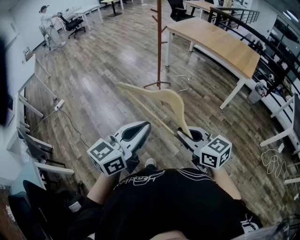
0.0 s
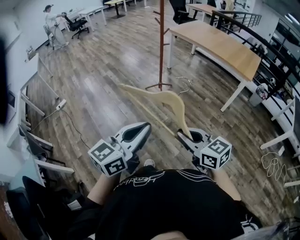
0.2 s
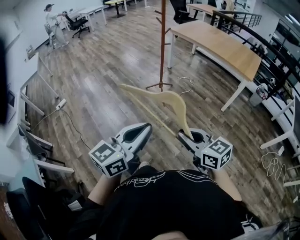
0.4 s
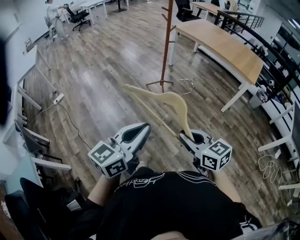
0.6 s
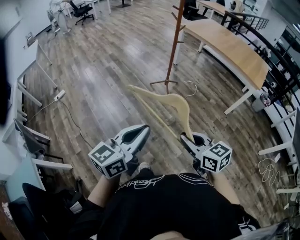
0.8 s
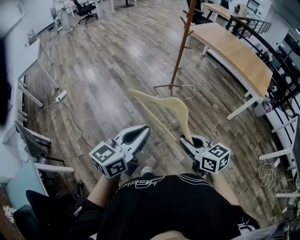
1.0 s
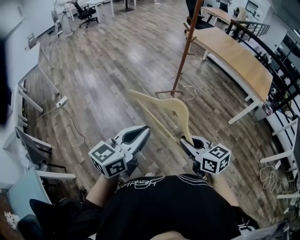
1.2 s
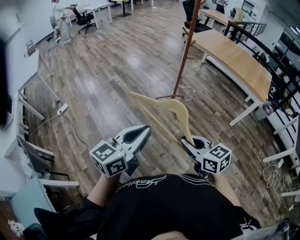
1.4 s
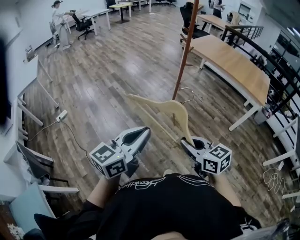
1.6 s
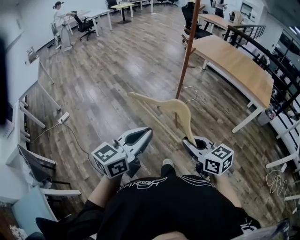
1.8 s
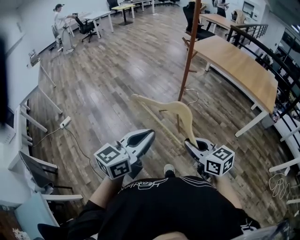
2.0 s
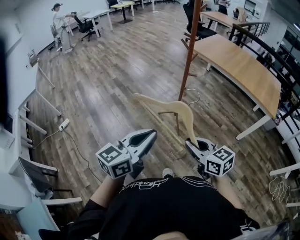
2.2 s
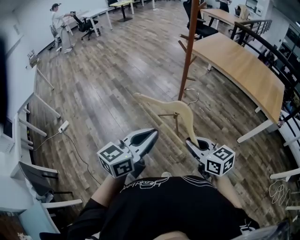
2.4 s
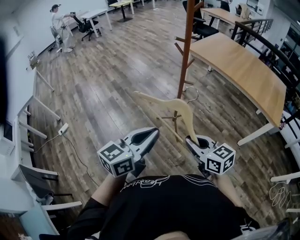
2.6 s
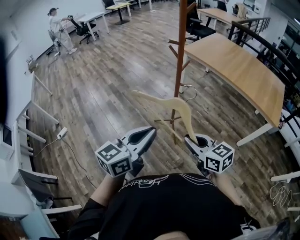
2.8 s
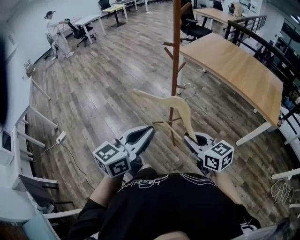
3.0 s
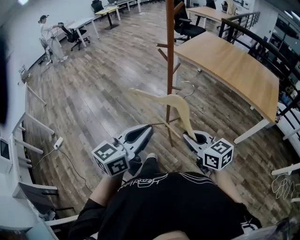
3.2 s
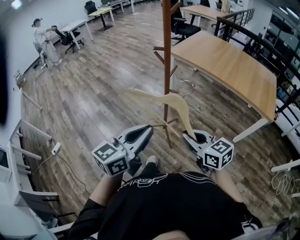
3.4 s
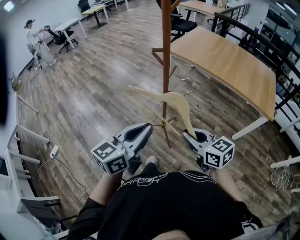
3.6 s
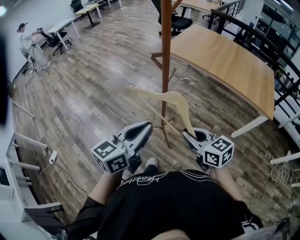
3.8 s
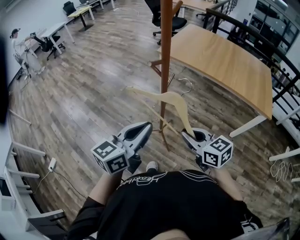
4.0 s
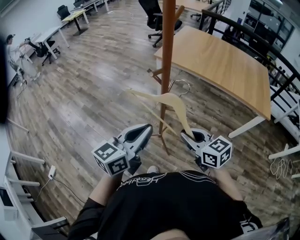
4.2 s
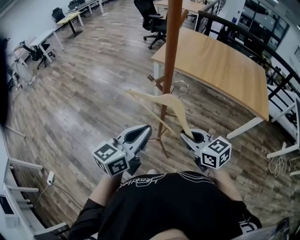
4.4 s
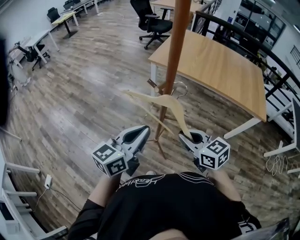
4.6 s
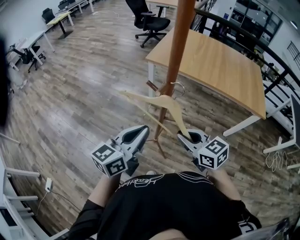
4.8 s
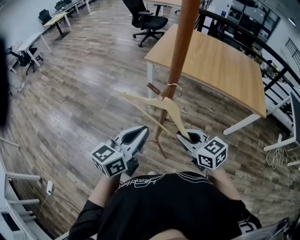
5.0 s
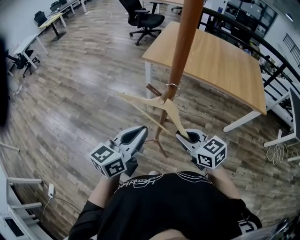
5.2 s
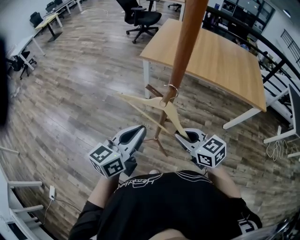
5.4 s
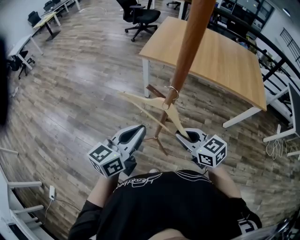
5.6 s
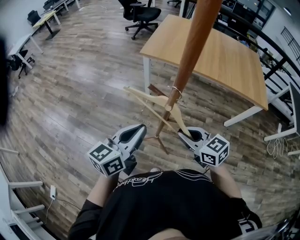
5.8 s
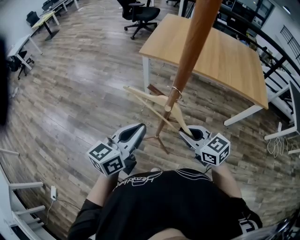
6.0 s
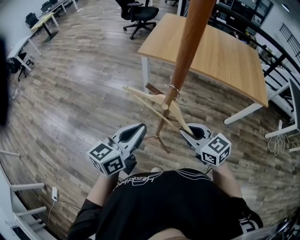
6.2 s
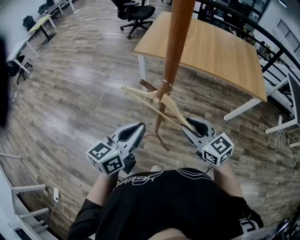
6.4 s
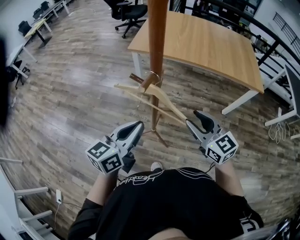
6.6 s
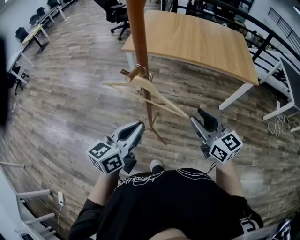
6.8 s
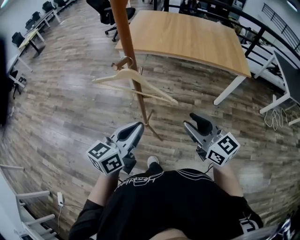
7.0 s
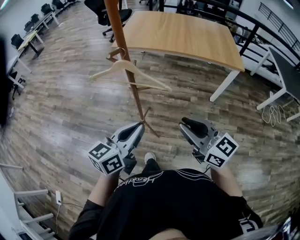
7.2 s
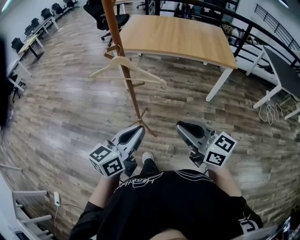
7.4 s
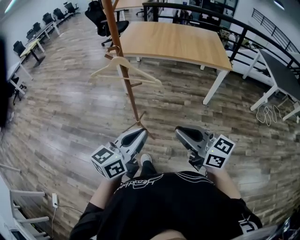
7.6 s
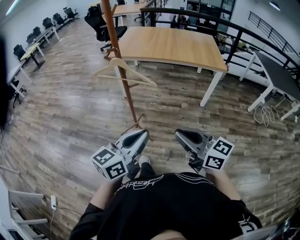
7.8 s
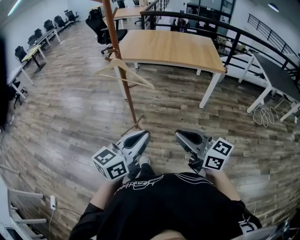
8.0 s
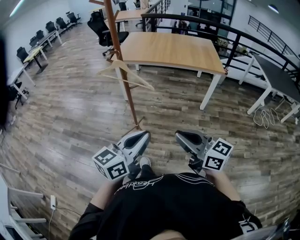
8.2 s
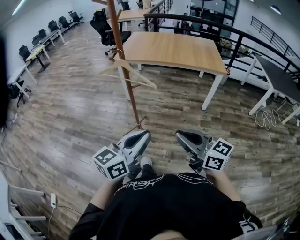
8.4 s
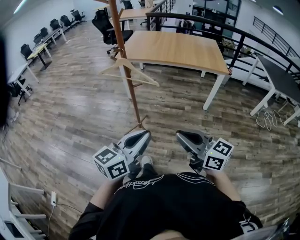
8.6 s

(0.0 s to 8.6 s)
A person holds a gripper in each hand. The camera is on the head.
0.0 s - 1.4 s: Both grippers travel together to the left and forward, roughly 20 cm.
1.4 s - 2.8 s: The grippers both shift forward and to the right by some 35 cm.
2.8 s - 4.4 s: Both grippers move forward, approximately 25 cm.
4.4 s - 5.8 s: The grippers both shift forward and downward by roughly 10 cm.
5.8 s - 7.2 s: The right gripper goes about 25 cm backward, to the right and upward, and changes its angle by approximately 20 degrees. The left gripper shifts about 20 cm backward and to the right.
7.2 s - 8.6 s: The grippers both shift backward by approximately 20 cm.

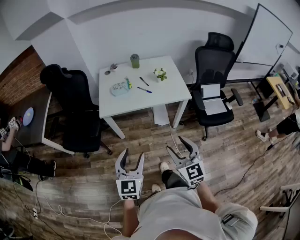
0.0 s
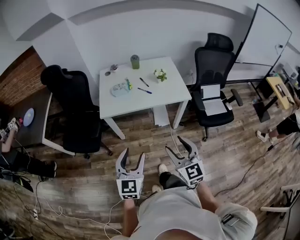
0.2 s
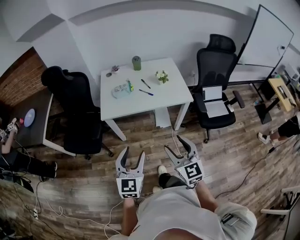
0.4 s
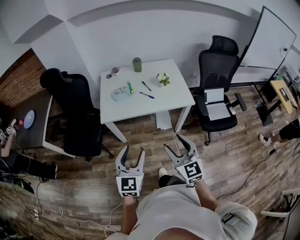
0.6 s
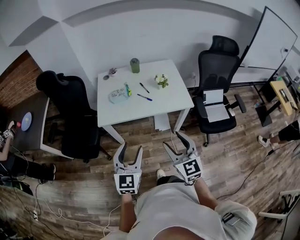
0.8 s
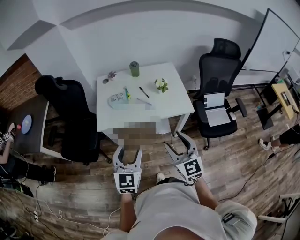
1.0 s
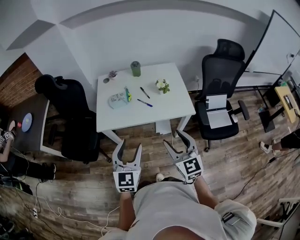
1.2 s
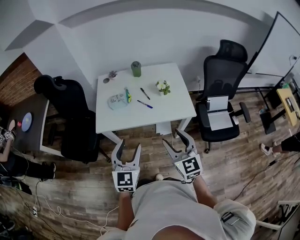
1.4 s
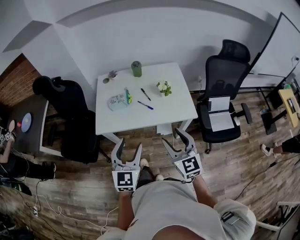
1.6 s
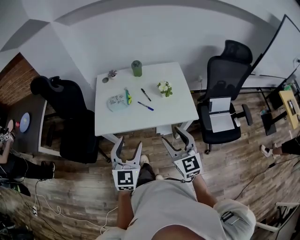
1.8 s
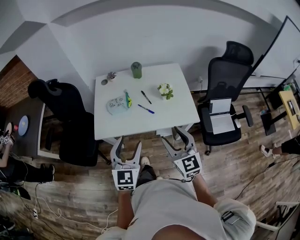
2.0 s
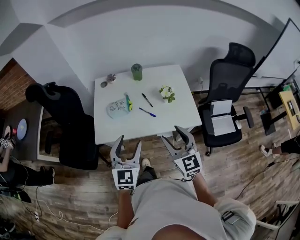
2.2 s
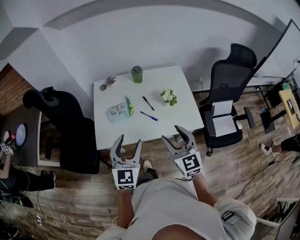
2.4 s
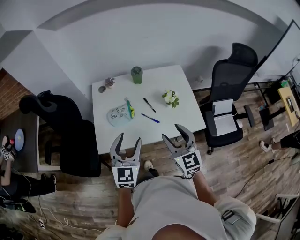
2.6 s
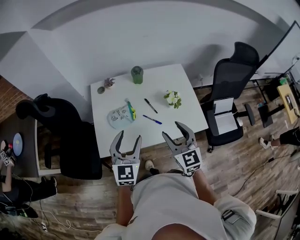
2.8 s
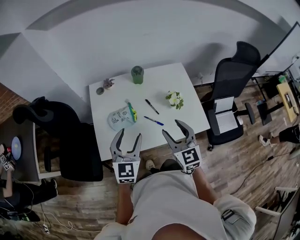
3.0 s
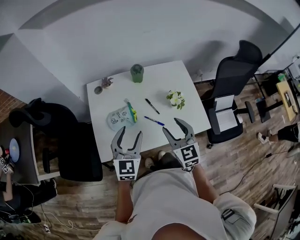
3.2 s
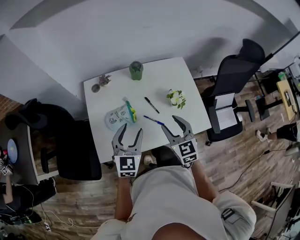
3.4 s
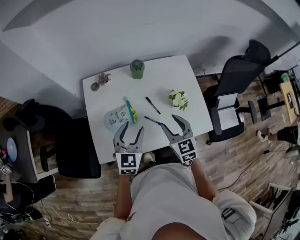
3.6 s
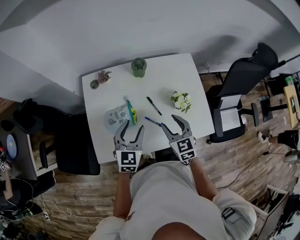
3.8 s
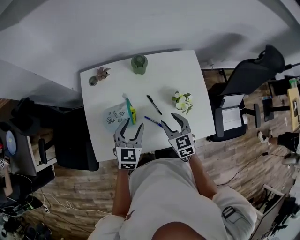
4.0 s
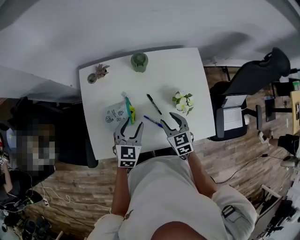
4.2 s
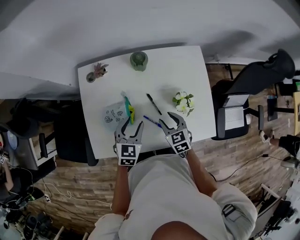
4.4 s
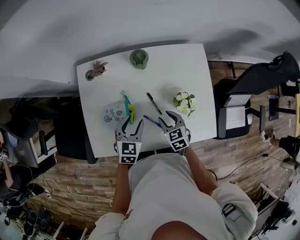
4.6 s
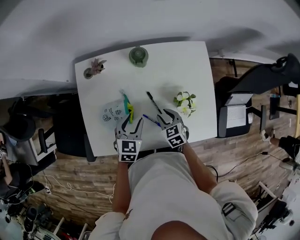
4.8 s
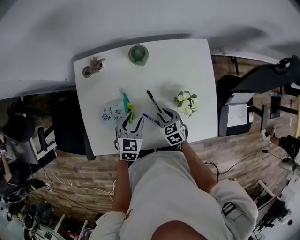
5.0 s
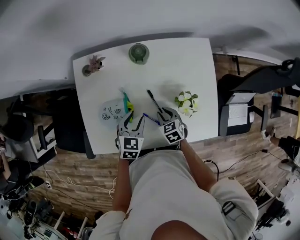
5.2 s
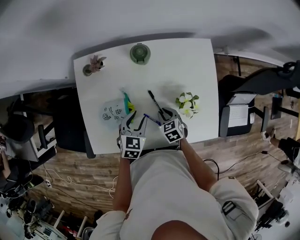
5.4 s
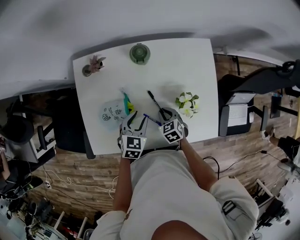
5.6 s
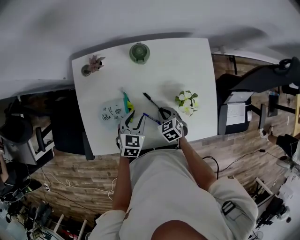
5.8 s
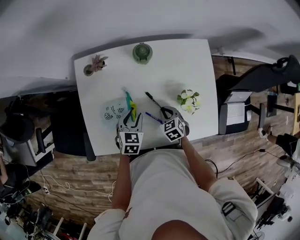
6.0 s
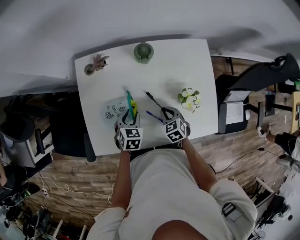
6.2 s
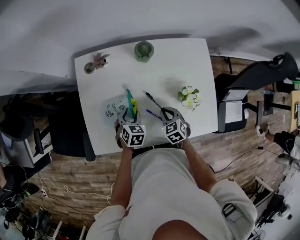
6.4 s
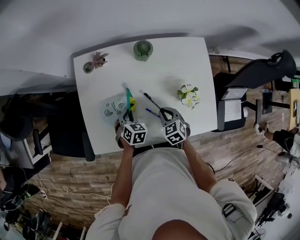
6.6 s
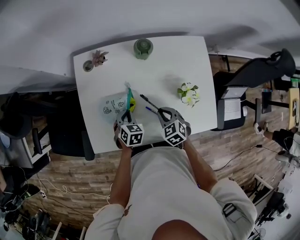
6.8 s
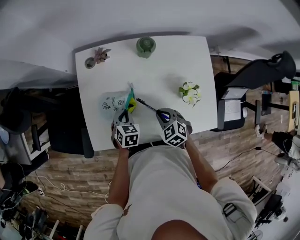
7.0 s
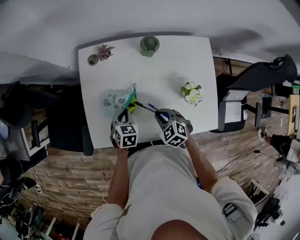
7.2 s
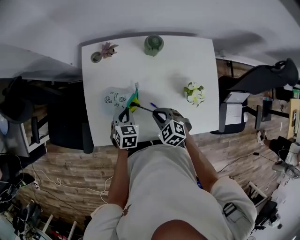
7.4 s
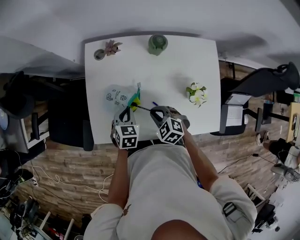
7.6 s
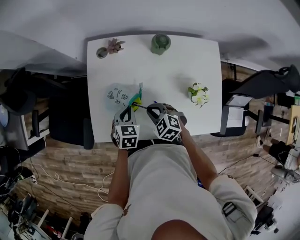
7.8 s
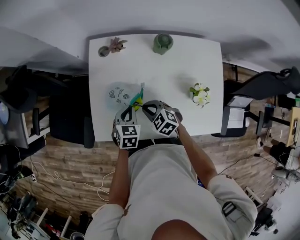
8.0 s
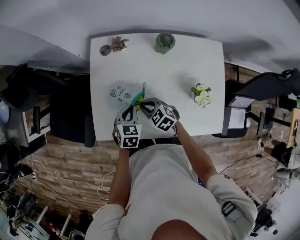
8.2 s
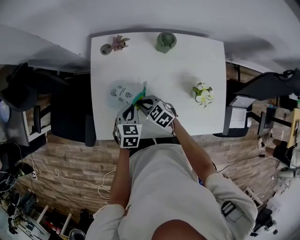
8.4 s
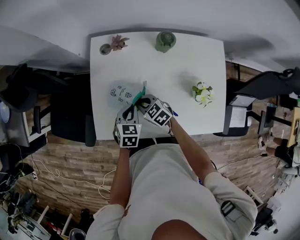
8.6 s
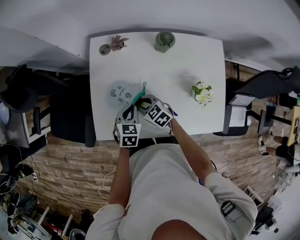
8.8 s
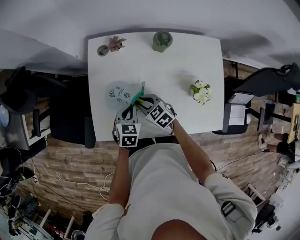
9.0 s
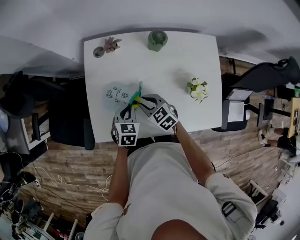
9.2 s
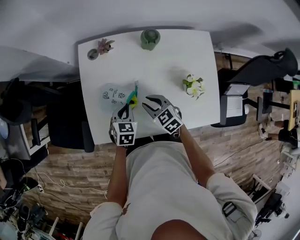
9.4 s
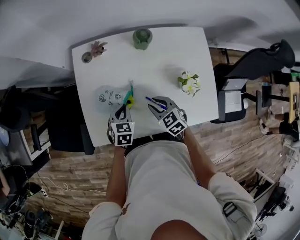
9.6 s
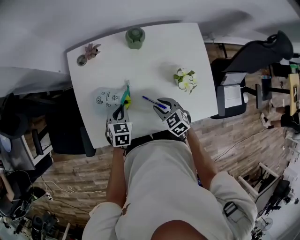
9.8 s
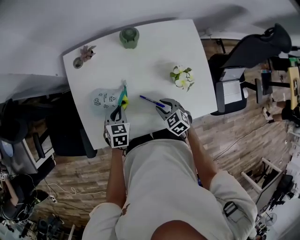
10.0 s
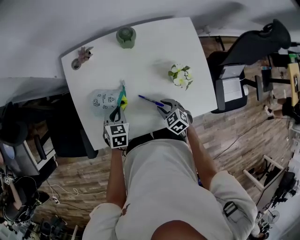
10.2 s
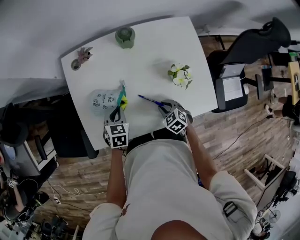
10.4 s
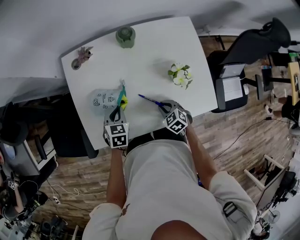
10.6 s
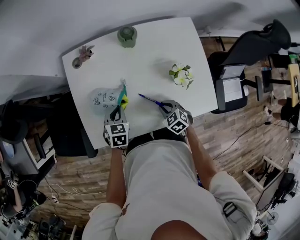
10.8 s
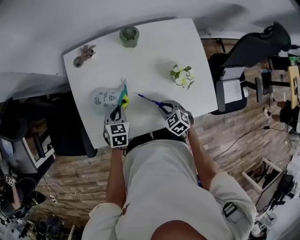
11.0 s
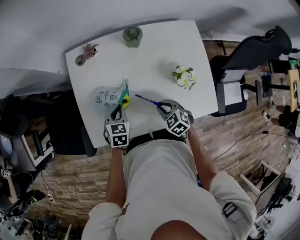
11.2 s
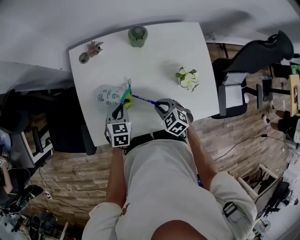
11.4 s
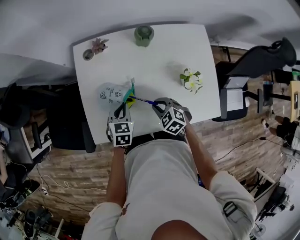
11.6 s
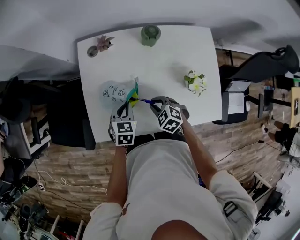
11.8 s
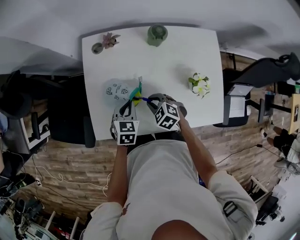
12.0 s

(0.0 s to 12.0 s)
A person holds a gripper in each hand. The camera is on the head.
0.0 s - 1.6 s: Both grippers move forward, approximately 20 cm.
1.6 s - 3.0 s: The grippers both shift forward by about 25 cm.
3.0 s - 4.4 s: The grippers both shift downward and forward by some 25 cm. The right gripper swivels roughly 30 degrees, while the left gripper rotates about 30 degrees.
4.4 s - 6.0 s: Both grippers travel together downward, about 10 cm. The right gripper closes its fingers.
6.0 s - 7.6 s: The left gripper moves to the left, about 10 cm, and closes its fingers; the right gripper heads to the left and upward, covering approximately 15 cm, and swivels approximately 30 degrees.
7.6 s - 9.0 s: The right gripper moves forward and to the left, roughly 10 cm, and swivels about 20 degrees.
9.0 s - 10.4 s: The right gripper travels to the right and backward by roughly 20 cm, and swivels approximately 20 degrees.
10.4 s - 12.0 s: The right gripper heads to the left and forward, covering roughly 15 cm, and rotates about 20 degrees.

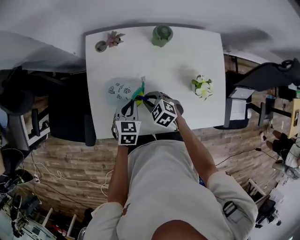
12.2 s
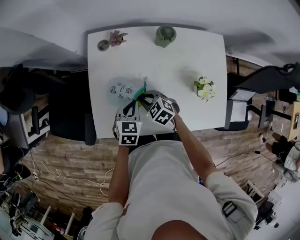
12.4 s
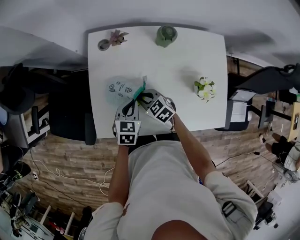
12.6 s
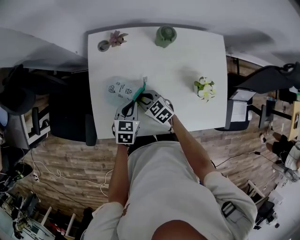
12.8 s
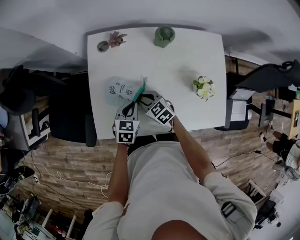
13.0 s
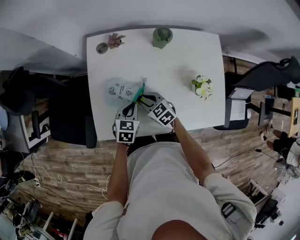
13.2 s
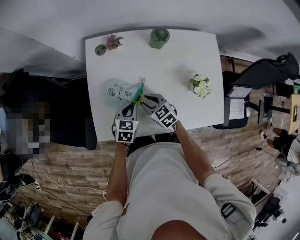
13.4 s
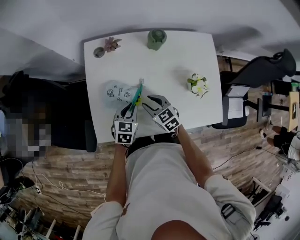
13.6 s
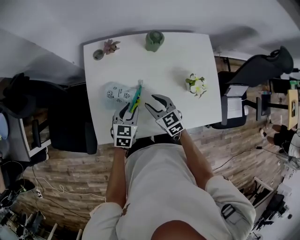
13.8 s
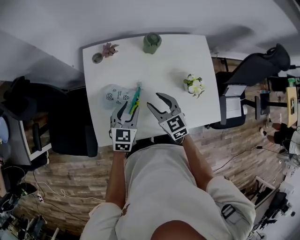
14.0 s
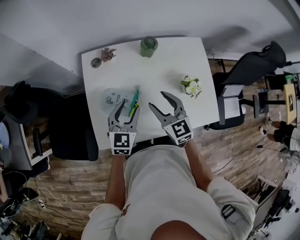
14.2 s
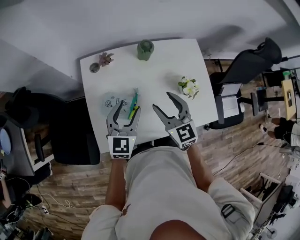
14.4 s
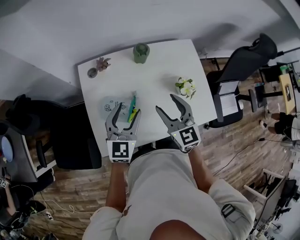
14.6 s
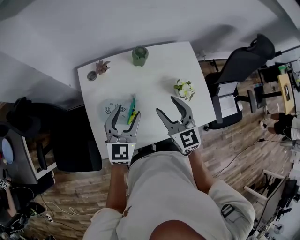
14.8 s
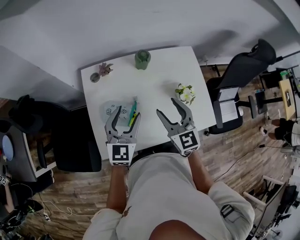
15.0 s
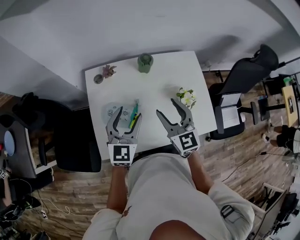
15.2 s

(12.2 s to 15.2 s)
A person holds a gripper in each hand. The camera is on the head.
12.2 s - 13.8 s: The right gripper moves upward, about 5 cm, changes its angle by about 30 degrees, and opens, while the left gripper opens up.
13.8 s - 15.2 s: Both grippers travel together upward, about 20 cm. The left gripper rotates about 30 degrees, and opens up, while the right gripper changes its angle by approximately 30 degrees.
